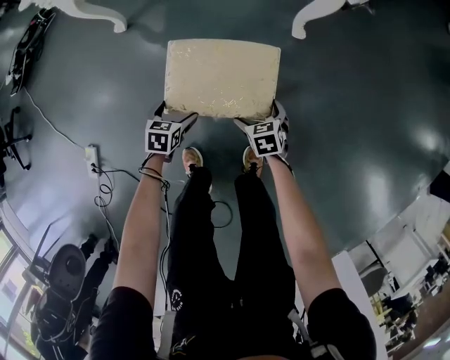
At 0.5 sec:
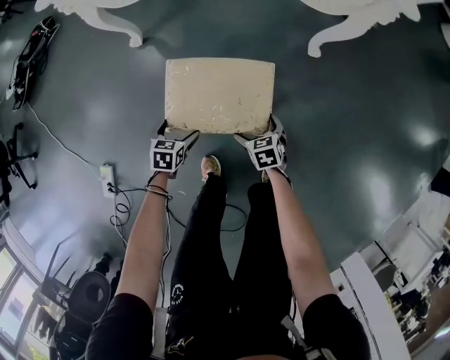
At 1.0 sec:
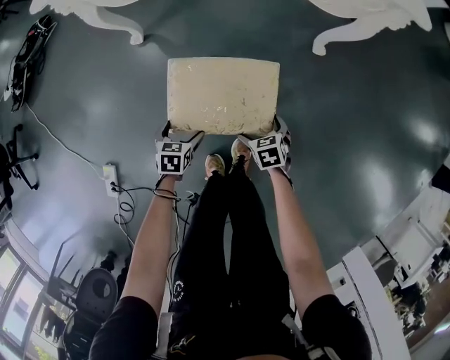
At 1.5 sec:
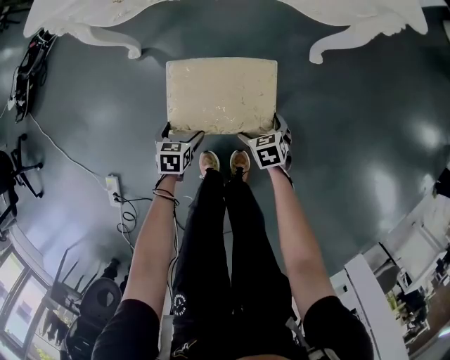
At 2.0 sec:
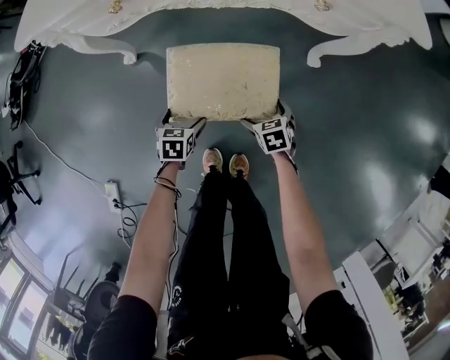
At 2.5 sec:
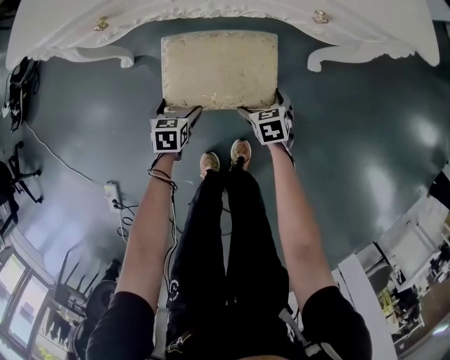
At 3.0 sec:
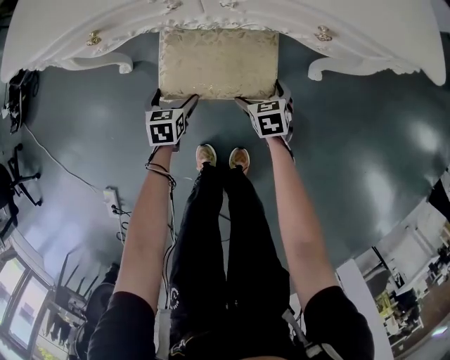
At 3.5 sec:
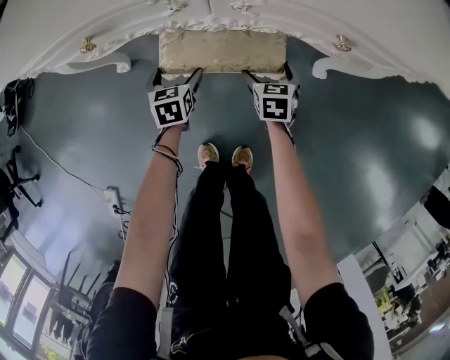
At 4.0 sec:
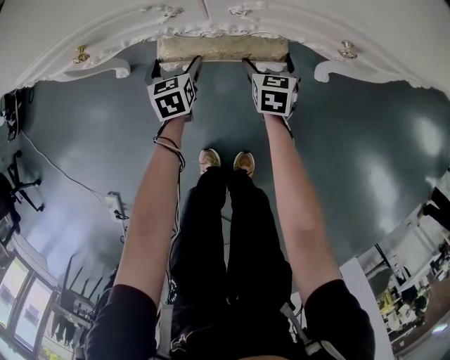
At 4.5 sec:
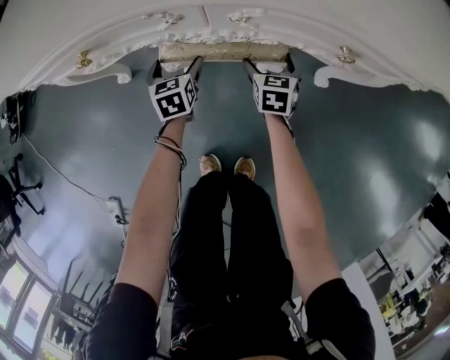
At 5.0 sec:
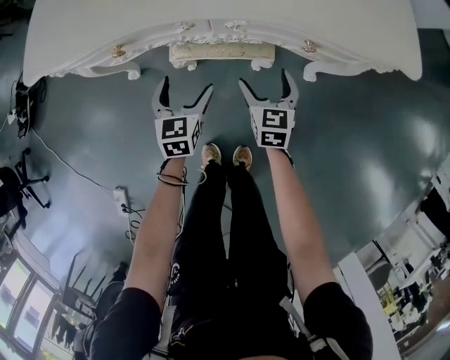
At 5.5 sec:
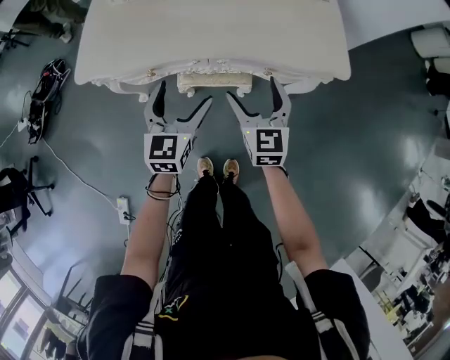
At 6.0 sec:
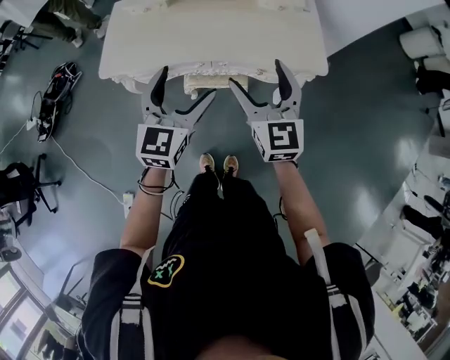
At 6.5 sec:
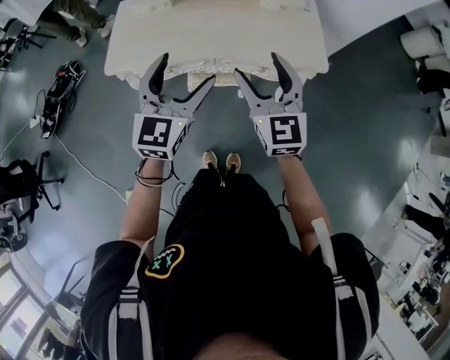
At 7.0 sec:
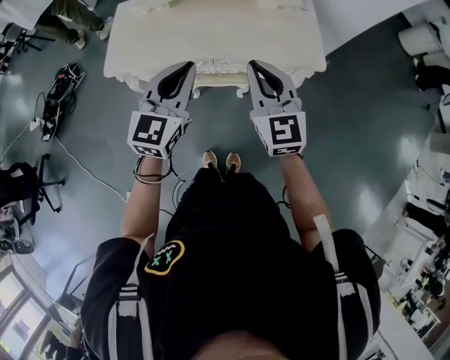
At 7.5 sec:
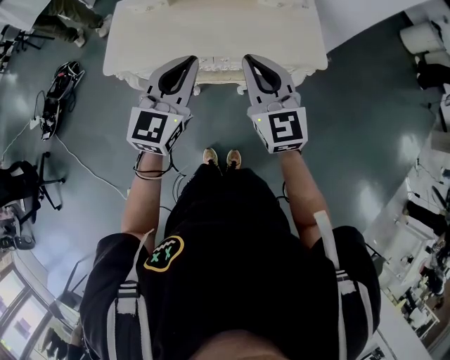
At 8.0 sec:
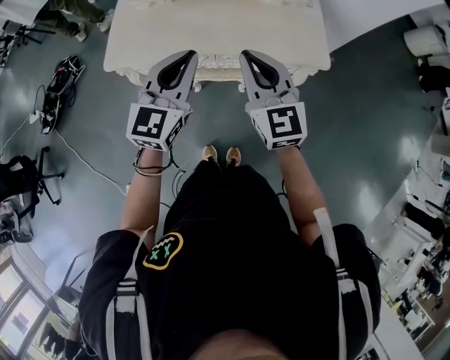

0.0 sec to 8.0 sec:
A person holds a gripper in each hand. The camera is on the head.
0.0 sec to 2.0 sec: Both grippers move forward and to the left, approximately 20 cm.
2.0 sec to 4.0 sec: The grippers both shift forward by approximately 30 cm. The left gripper changes its angle by about 20 degrees. Meanwhile the right gripper turns by about 30 degrees.
4.0 sec to 6.0 sec: The two grippers go approximately 70 cm upward. The left gripper points its fingers about 30 degrees further upward; the right gripper points its fingers some 40 degrees further upward.
6.0 sec to 8.0 sec: The left gripper goes some 5 cm upward, and closes up. The right gripper changes place by approximately 5 cm, and closes.

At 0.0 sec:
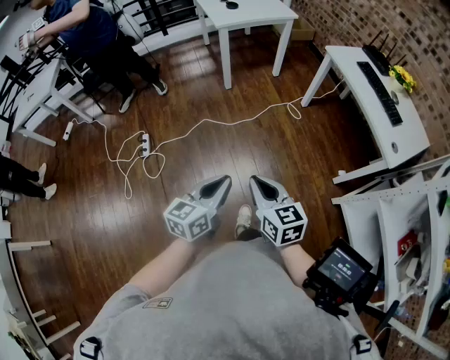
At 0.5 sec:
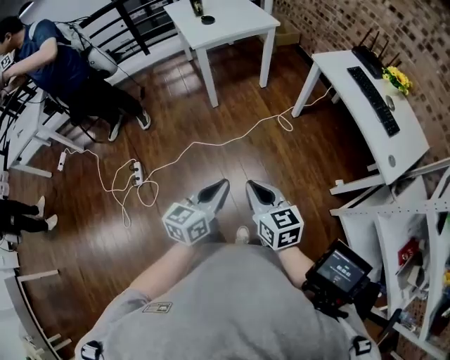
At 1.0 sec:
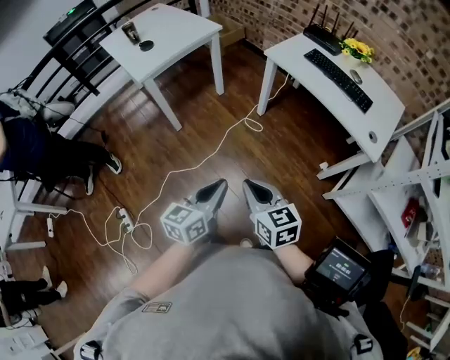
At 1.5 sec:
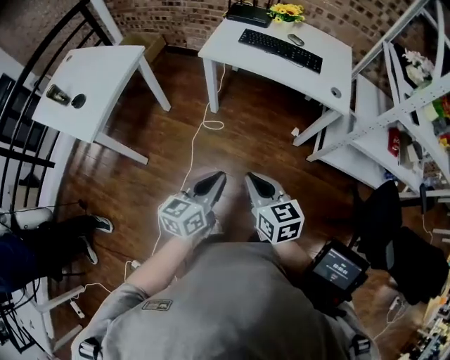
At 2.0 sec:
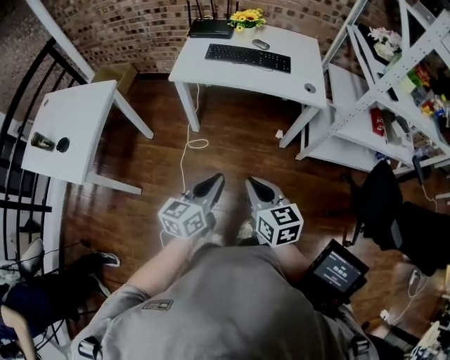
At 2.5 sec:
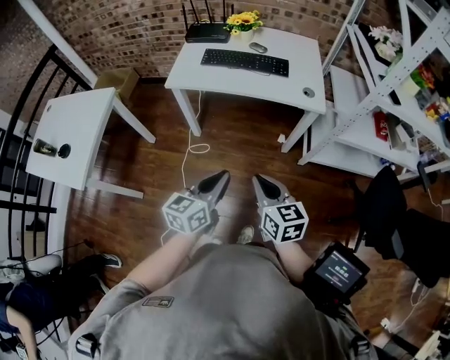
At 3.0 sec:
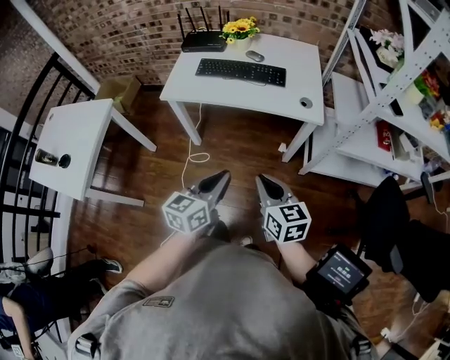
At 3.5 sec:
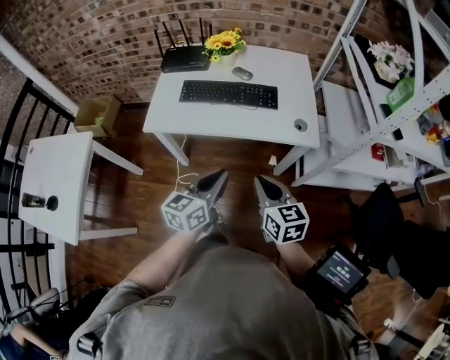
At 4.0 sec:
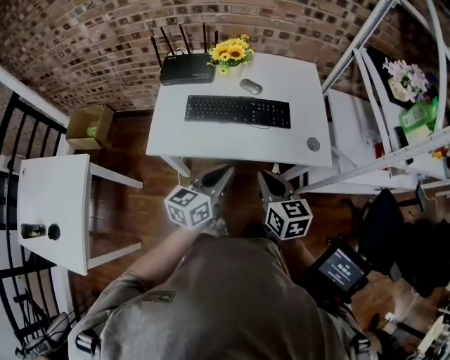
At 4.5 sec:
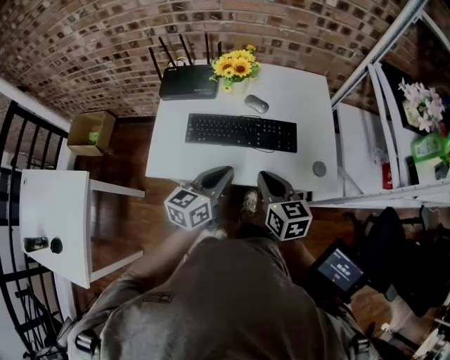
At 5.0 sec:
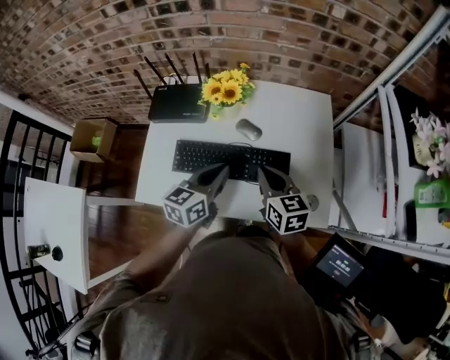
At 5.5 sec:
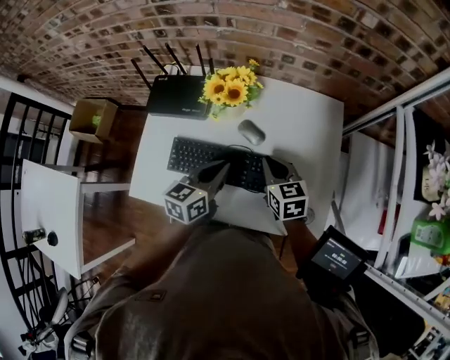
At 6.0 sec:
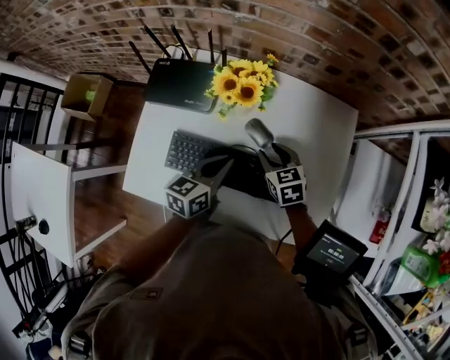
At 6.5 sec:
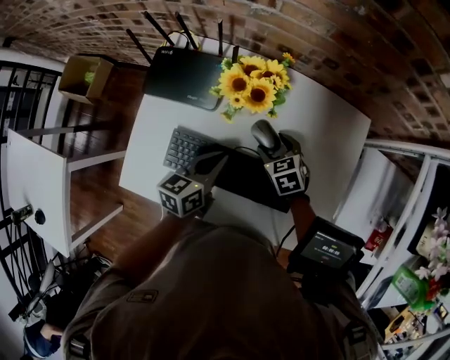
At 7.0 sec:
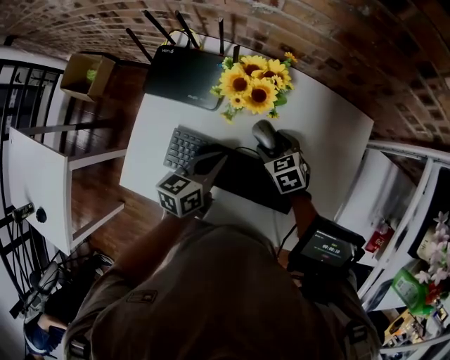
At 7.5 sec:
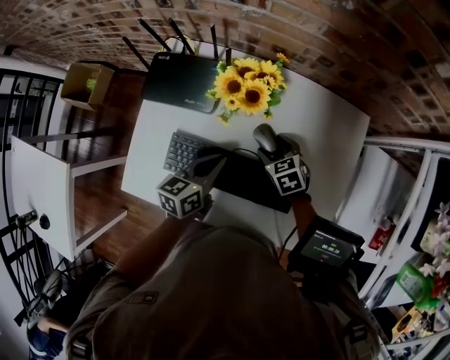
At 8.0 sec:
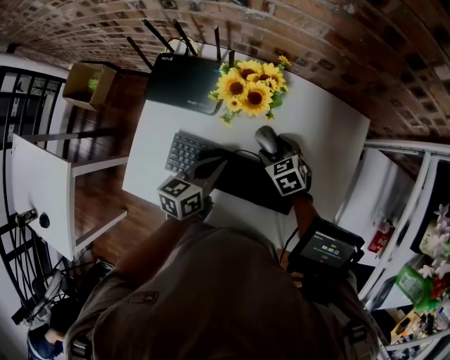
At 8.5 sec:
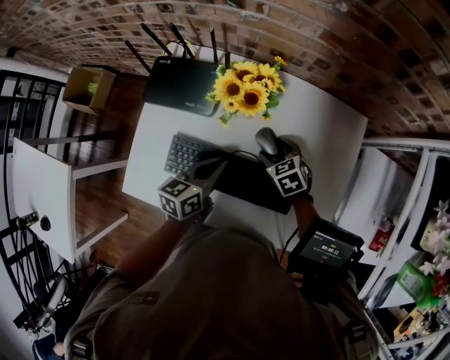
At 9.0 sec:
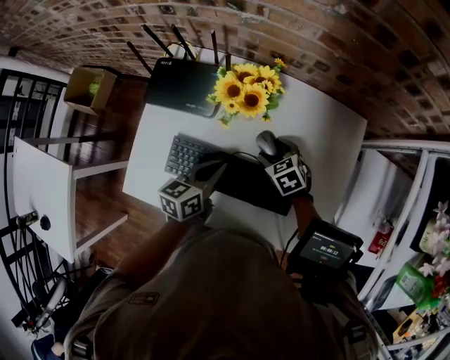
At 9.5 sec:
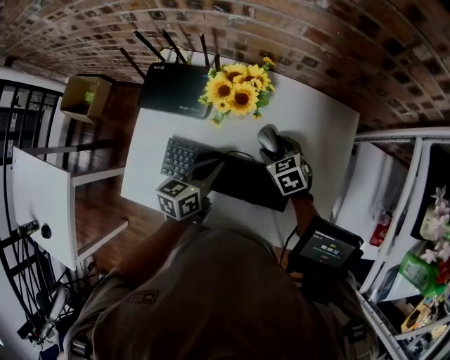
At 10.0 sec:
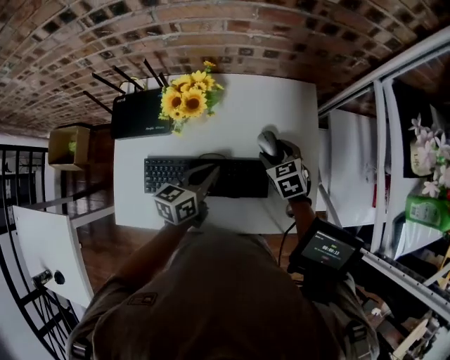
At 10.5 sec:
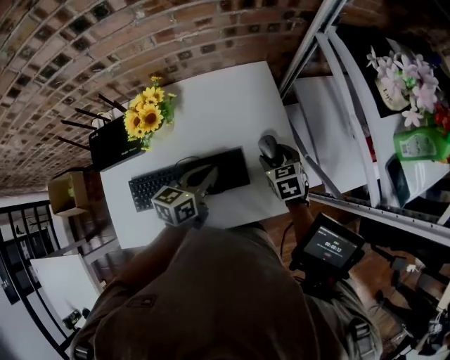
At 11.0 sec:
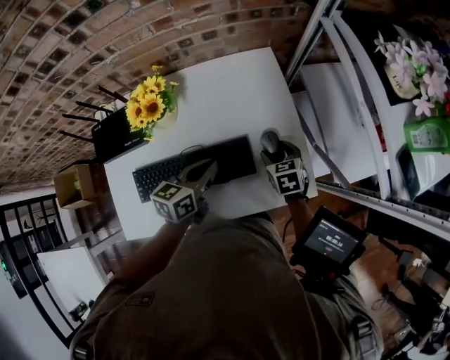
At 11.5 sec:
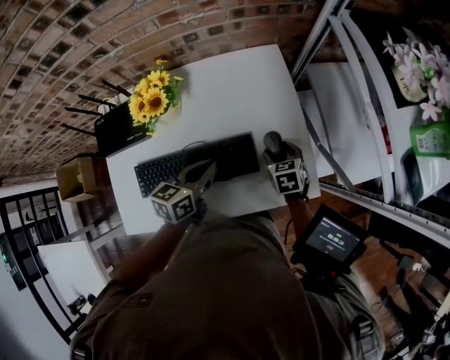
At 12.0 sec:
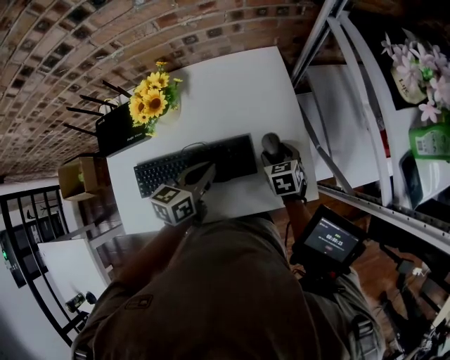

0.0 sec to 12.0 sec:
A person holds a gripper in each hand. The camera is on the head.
0.0 sec to 2.0 sec: The right gripper changes place by roughly 35 cm, and turns by roughly 60 degrees. Meanwhile the left gripper shifts by about 40 cm, and swivels roughly 60 degrees.
2.0 sec to 4.0 sec: Both grippers travel together forward, about 35 cm.
4.0 sec to 6.0 sec: Both grippers move forward, approximately 35 cm. The right gripper changes its angle by roughly 30 degrees, and opens its fingers.
6.0 sec to 8.0 sec: The right gripper heads downward, covering about 5 cm, and opens its fingers.
8.0 sec to 10.0 sec: The left gripper travels to the right by about 10 cm. The right gripper is displaced to the right and upward by approximately 15 cm, and swivels approximately 20 degrees.
10.0 sec to 12.0 sec: The right gripper is displaced to the right, backward and downward by approximately 15 cm, and rotates approximately 20 degrees, while the left gripper travels to the right by some 5 cm.

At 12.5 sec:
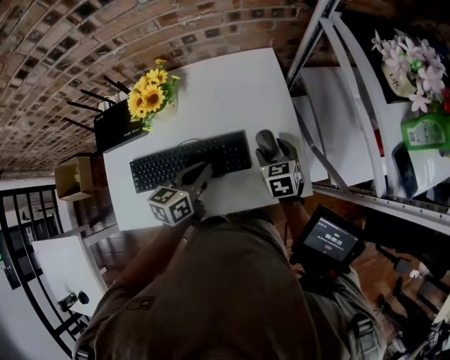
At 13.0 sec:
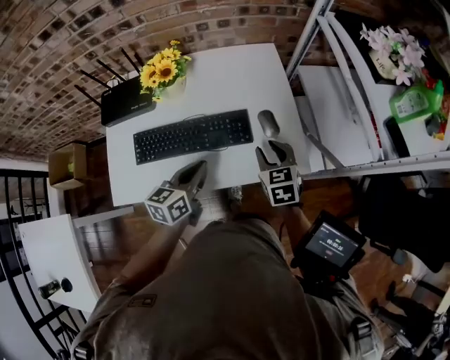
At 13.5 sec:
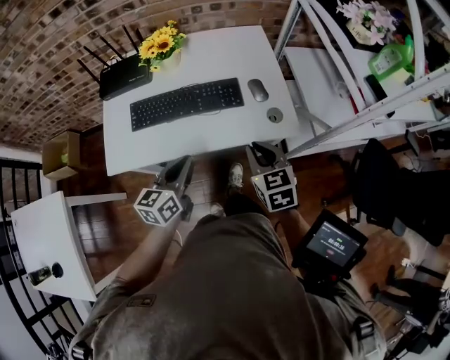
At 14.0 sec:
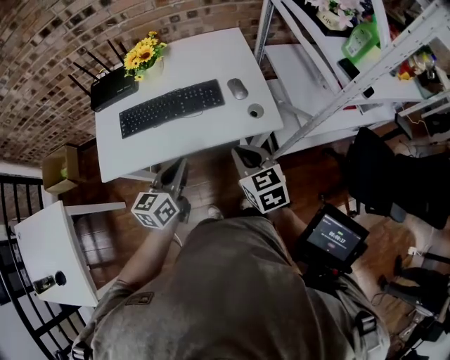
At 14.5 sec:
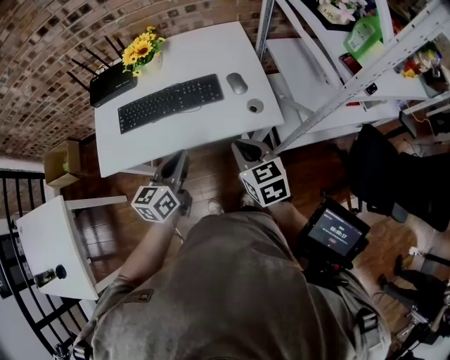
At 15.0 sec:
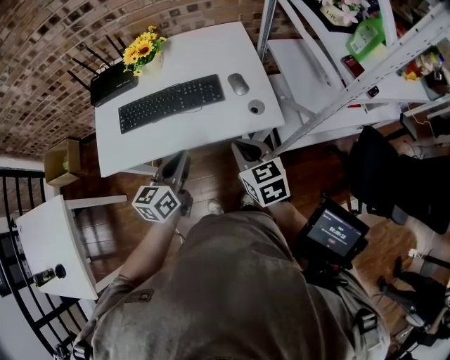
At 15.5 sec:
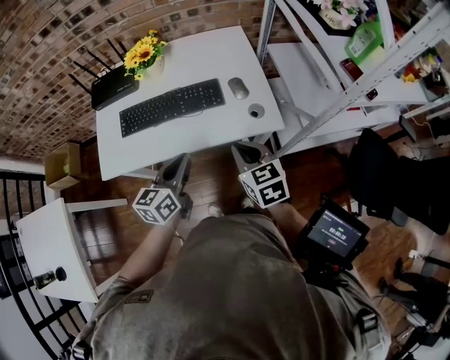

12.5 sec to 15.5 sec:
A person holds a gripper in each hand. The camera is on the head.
12.5 sec to 14.0 sec: The left gripper travels backward by some 25 cm. Meanwhile the right gripper travels backward and upward by approximately 30 cm, and closes.
14.0 sec to 15.5 sec: There are only small adjustments of the grippers.

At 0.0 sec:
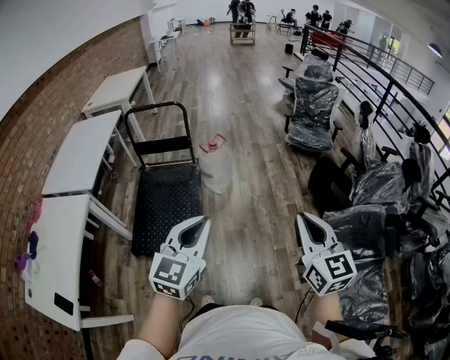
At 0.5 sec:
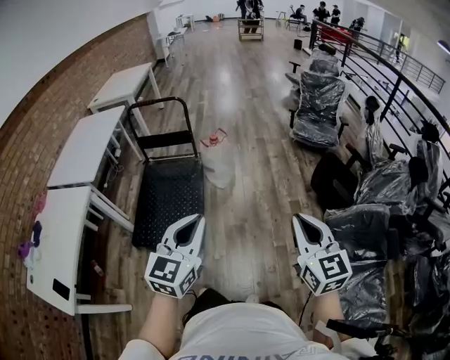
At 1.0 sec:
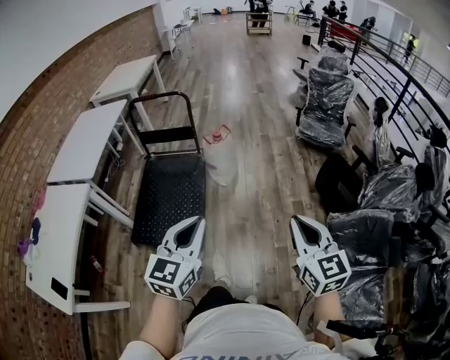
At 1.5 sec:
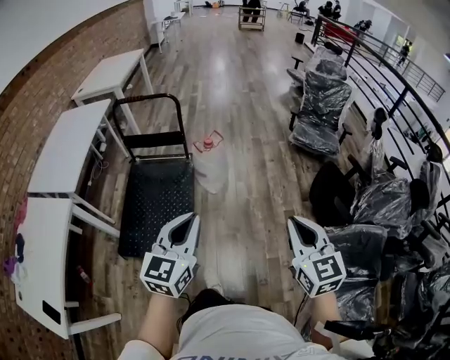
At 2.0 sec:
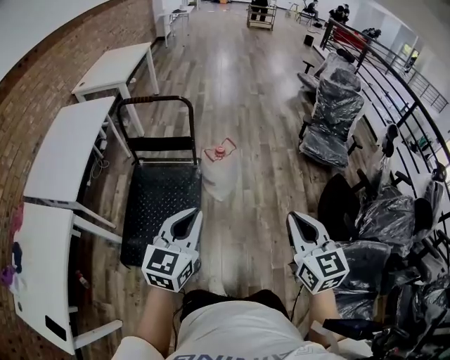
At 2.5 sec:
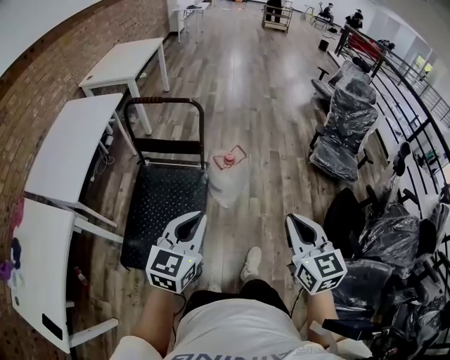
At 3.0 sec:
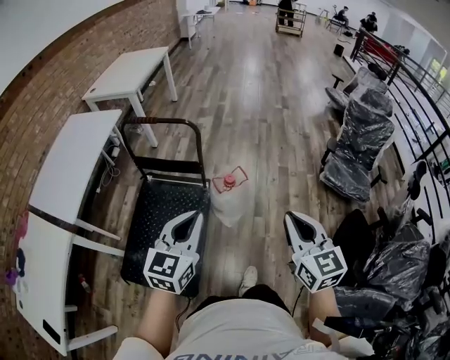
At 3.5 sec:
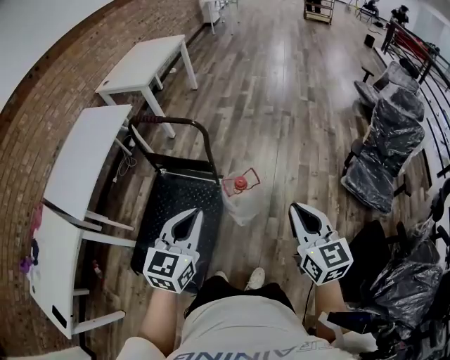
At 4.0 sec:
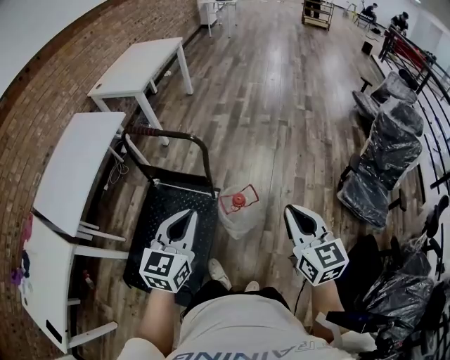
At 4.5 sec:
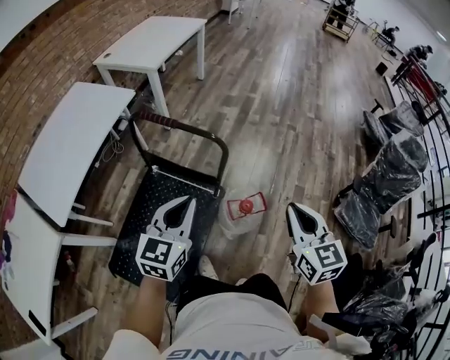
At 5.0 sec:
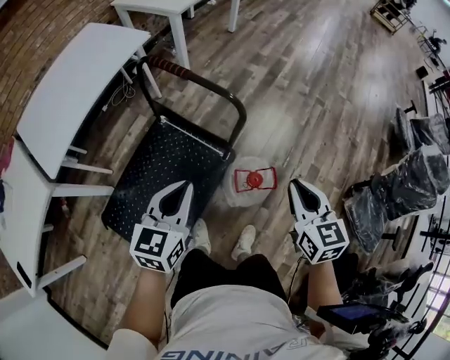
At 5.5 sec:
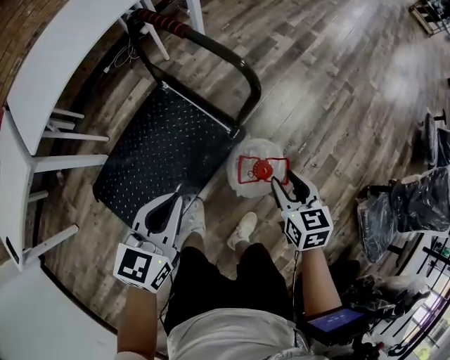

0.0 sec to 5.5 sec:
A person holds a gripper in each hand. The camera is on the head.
0.0 sec to 2.0 sec: The two grippers go approximately 25 cm forward.
2.0 sec to 3.5 sec: The two grippers go about 30 cm forward.
3.5 sec to 5.5 sec: The left gripper travels downward, forward and to the left by approximately 25 cm, and swivels roughly 30 degrees. The right gripper travels downward and forward by roughly 40 cm, turns by approximately 30 degrees, and opens up.
